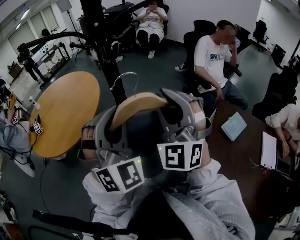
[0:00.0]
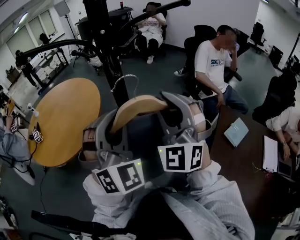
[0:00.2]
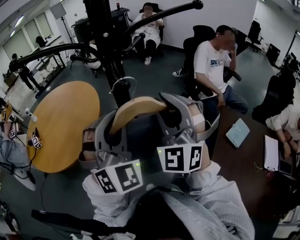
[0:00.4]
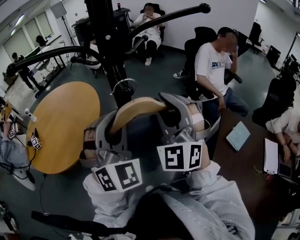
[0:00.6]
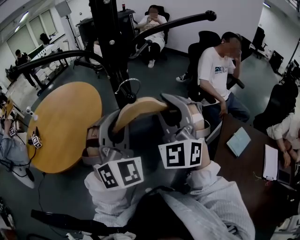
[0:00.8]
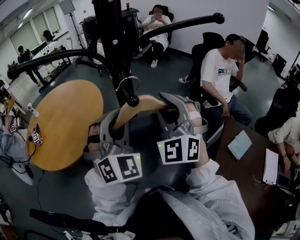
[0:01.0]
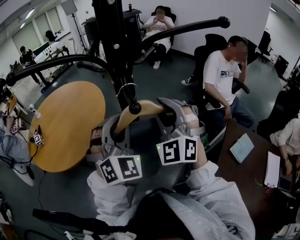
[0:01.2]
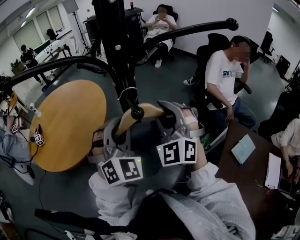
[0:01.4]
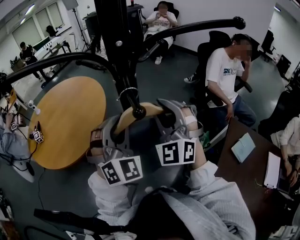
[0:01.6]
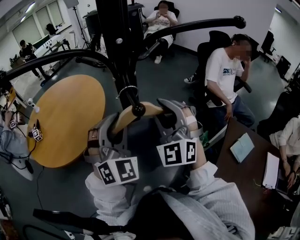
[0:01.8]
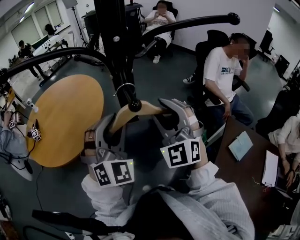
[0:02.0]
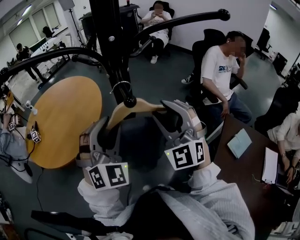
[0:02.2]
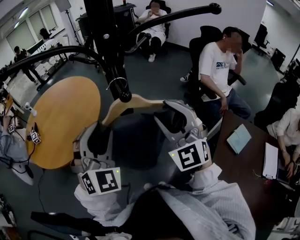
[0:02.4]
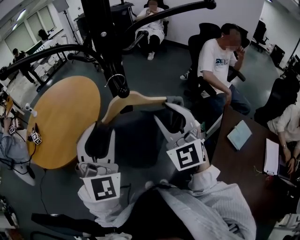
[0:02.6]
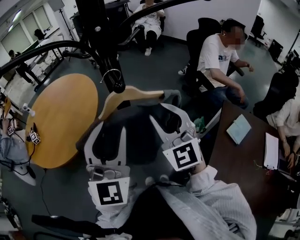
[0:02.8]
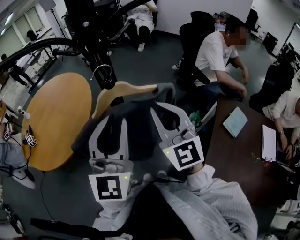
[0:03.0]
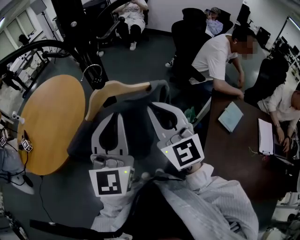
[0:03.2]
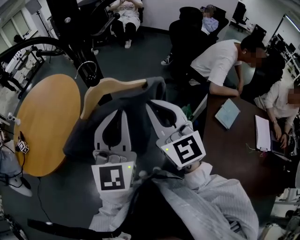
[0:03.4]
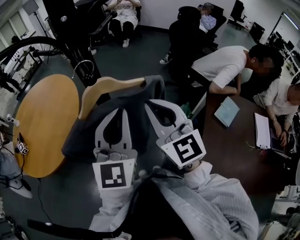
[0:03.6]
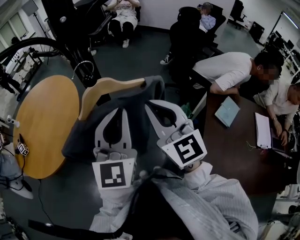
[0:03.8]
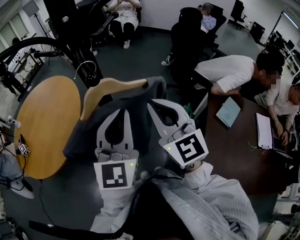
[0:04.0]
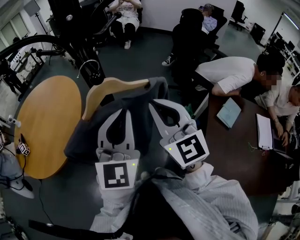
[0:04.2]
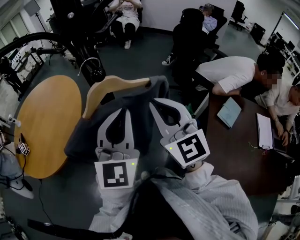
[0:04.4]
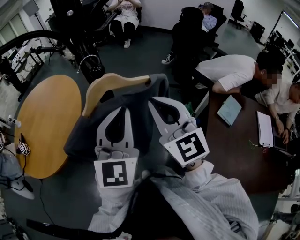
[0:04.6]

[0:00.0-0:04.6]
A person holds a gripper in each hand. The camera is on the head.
0:00.0 to 0:01.6: The two grippers go roughly 15 cm forward.
0:01.6 to 0:03.0: The two grippers go about 10 cm backward. The left gripper rolls counterclockwise, seen from behind, by about 40 degrees. Meanwhile the right gripper turns by about 40 degrees.
0:03.0 to 0:04.6: The left gripper ends up some 5 cm from where it was, and closes.

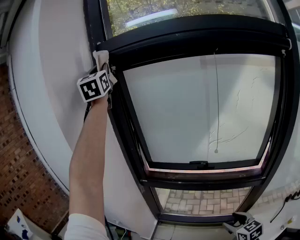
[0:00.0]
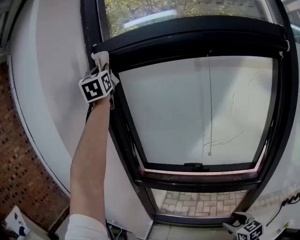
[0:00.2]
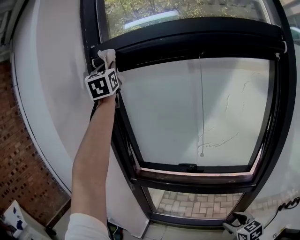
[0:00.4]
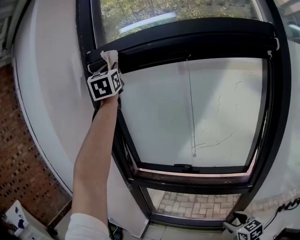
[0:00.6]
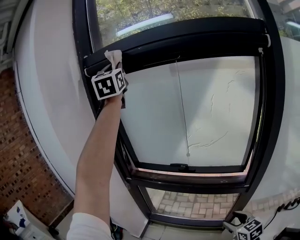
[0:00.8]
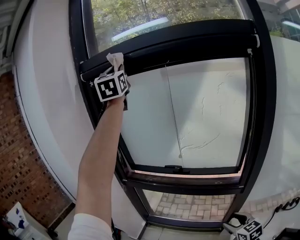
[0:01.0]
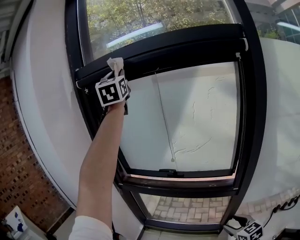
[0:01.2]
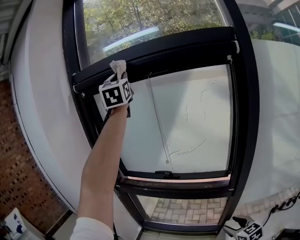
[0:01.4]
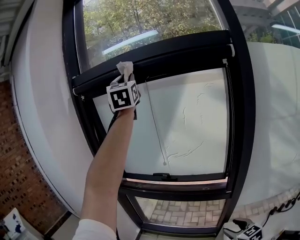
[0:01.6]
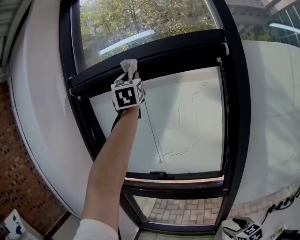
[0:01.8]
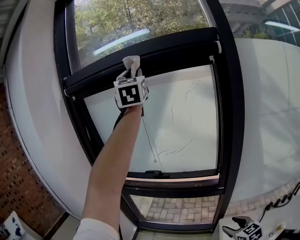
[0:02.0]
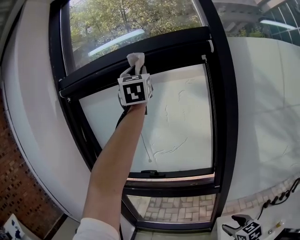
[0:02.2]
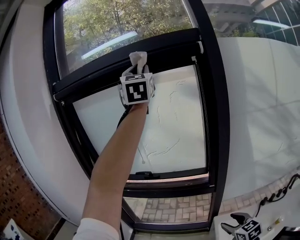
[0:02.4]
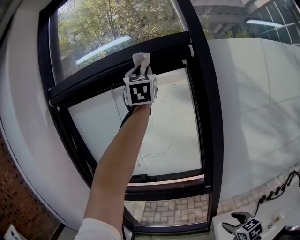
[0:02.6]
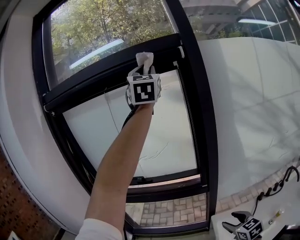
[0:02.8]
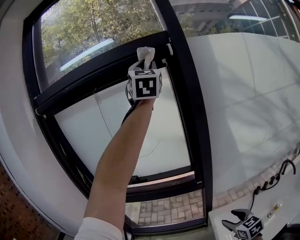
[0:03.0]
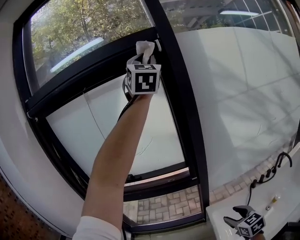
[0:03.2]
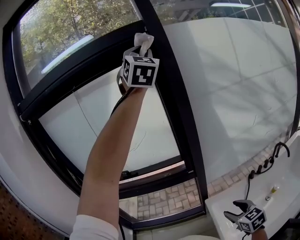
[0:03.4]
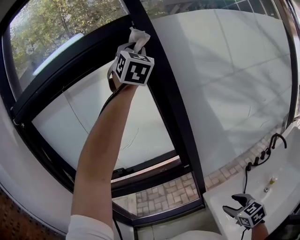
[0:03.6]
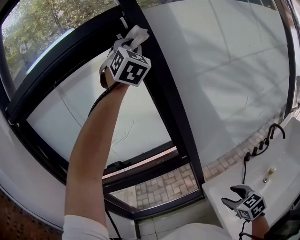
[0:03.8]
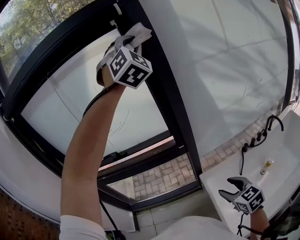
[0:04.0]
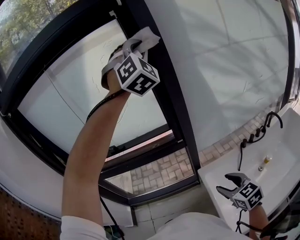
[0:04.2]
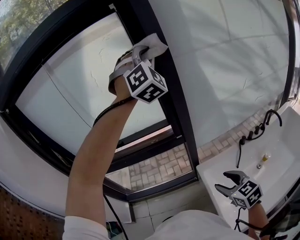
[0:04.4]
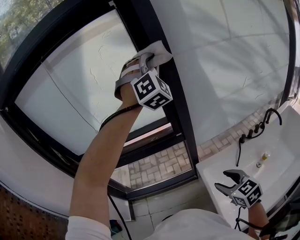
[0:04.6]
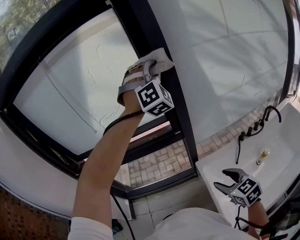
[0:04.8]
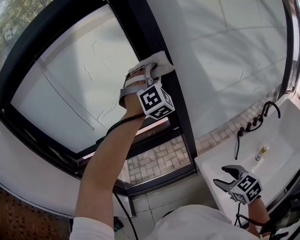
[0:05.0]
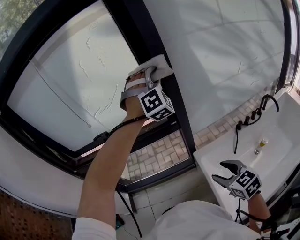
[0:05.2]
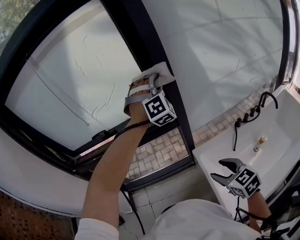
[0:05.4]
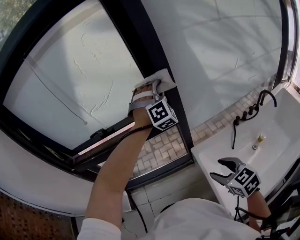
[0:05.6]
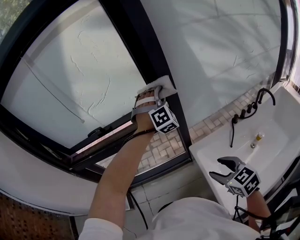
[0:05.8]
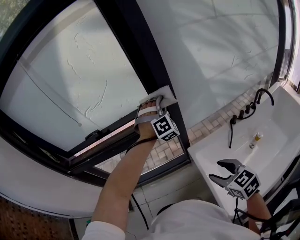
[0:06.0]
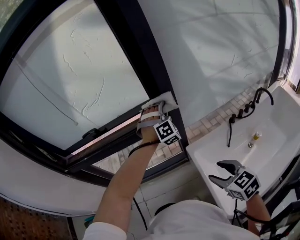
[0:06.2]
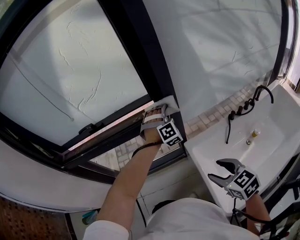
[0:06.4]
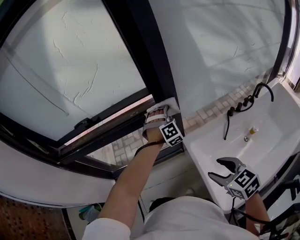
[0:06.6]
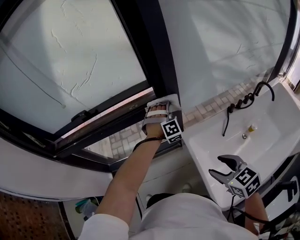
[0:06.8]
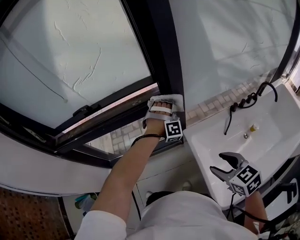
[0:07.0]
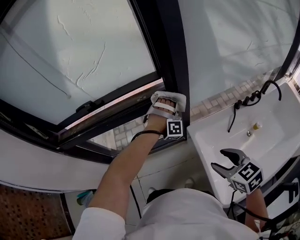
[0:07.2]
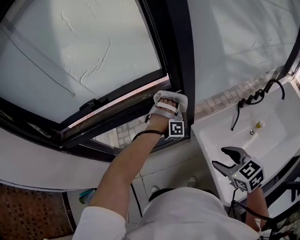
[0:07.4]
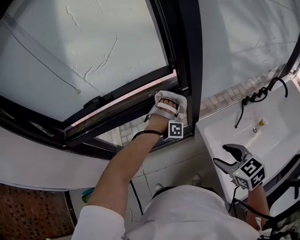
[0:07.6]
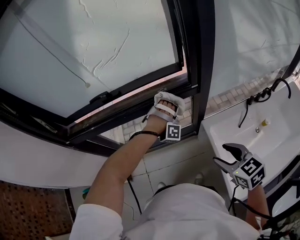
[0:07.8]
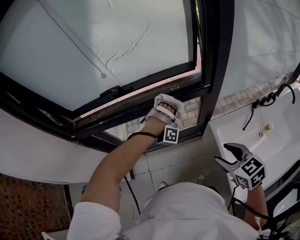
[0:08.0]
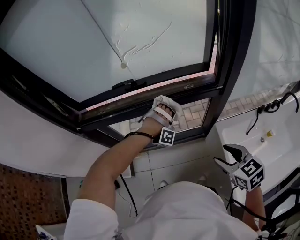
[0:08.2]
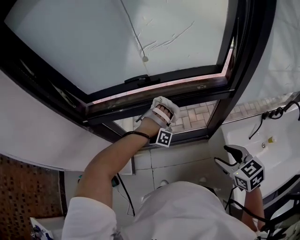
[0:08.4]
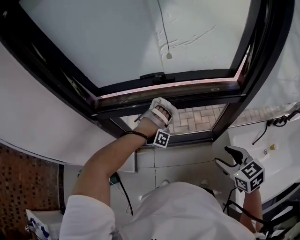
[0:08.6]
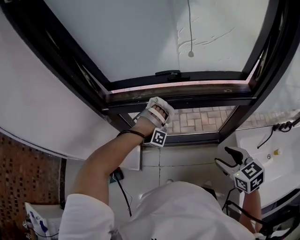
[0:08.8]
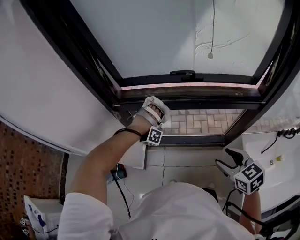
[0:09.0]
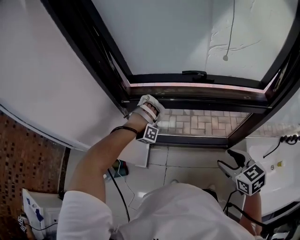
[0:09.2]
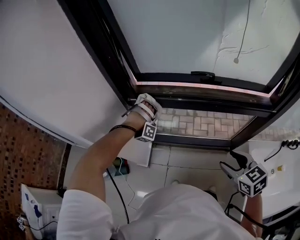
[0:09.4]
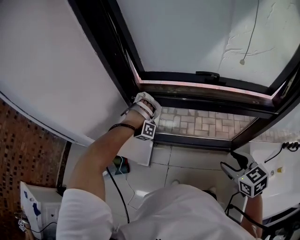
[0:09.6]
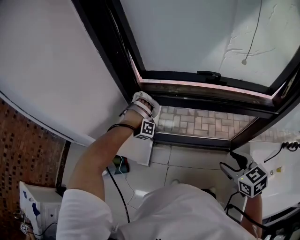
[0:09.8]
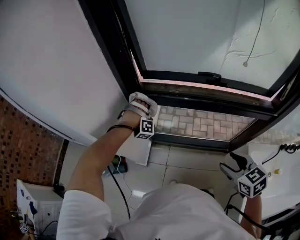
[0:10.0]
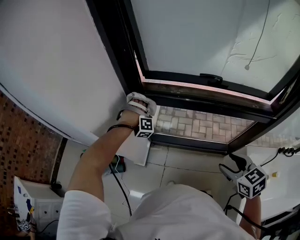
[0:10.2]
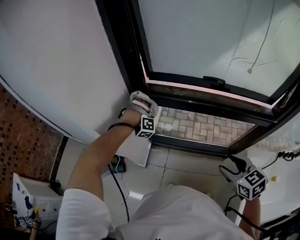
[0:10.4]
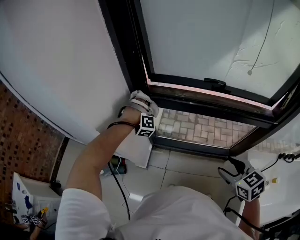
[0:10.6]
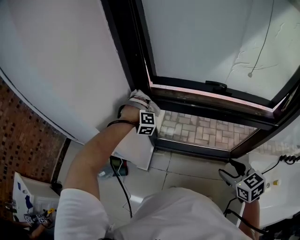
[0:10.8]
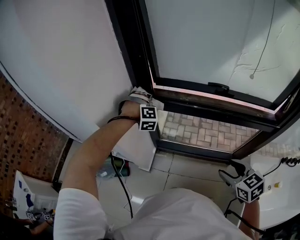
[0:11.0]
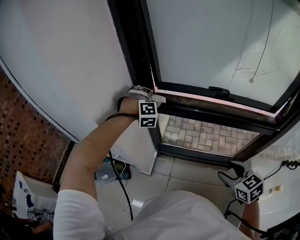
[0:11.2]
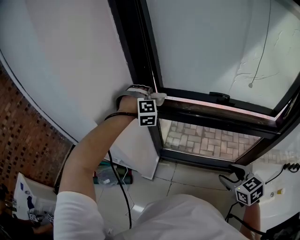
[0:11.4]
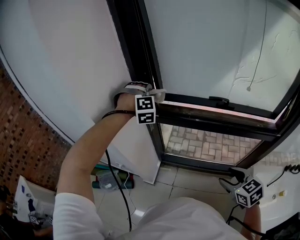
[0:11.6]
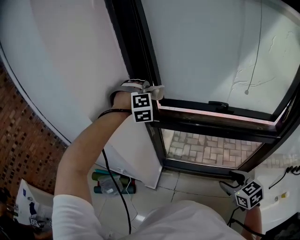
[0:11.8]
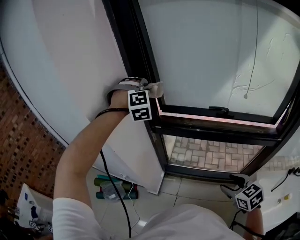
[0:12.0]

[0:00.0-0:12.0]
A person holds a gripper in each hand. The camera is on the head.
0:00.0 to 0:01.6: The right gripper ends up about 25 cm from where it was.
0:01.6 to 0:03.0: The right gripper ends up roughly 10 cm from where it was.
0:06.0 to 0:07.6: The right gripper changes place by roughly 5 cm.
0:07.6 to 0:09.0: The right gripper shifts by approximately 30 cm.
0:09.0 to 0:10.4: The right gripper shifts by approximately 10 cm.

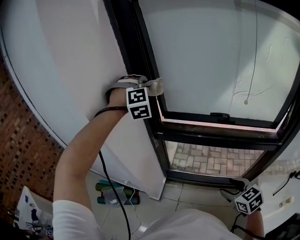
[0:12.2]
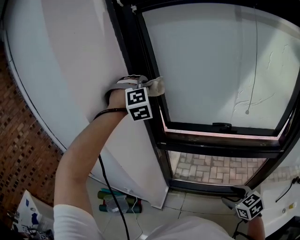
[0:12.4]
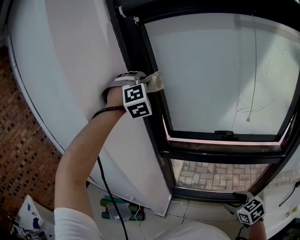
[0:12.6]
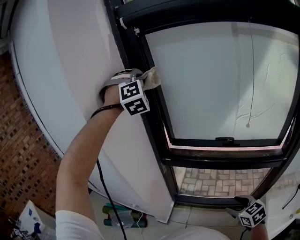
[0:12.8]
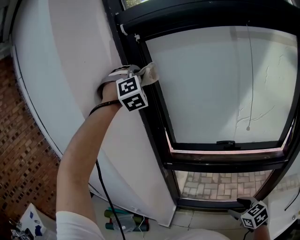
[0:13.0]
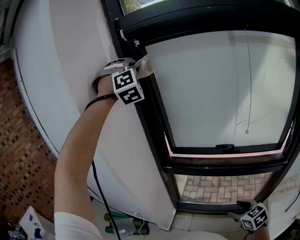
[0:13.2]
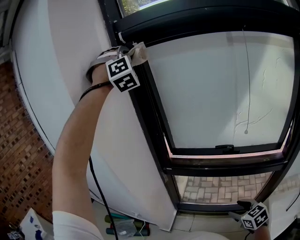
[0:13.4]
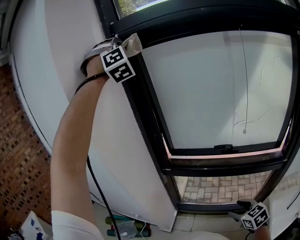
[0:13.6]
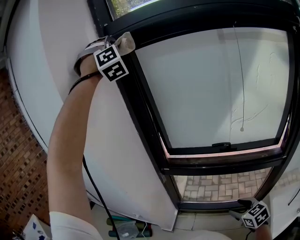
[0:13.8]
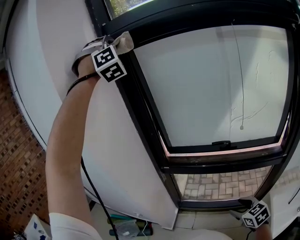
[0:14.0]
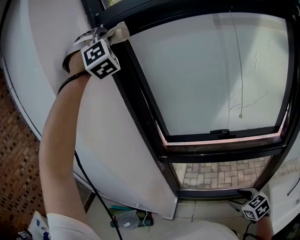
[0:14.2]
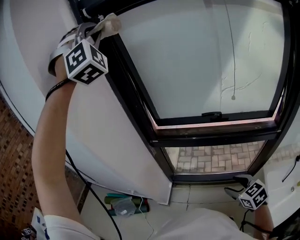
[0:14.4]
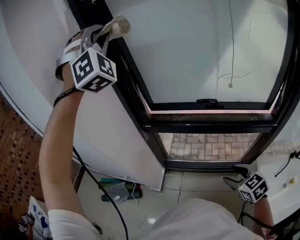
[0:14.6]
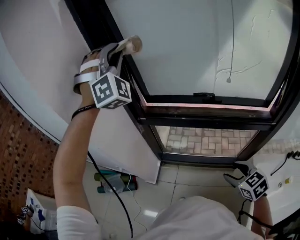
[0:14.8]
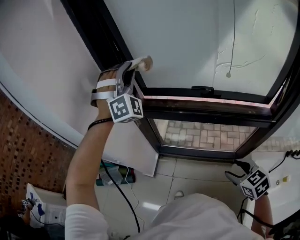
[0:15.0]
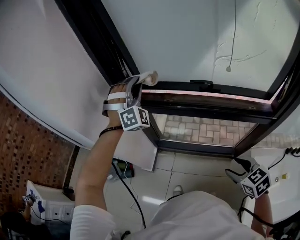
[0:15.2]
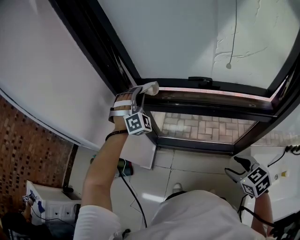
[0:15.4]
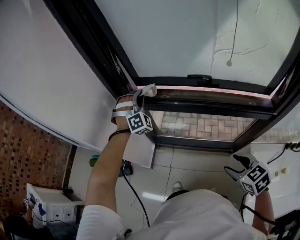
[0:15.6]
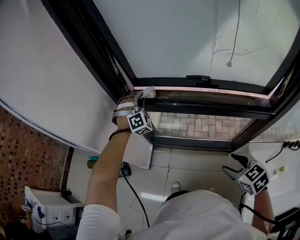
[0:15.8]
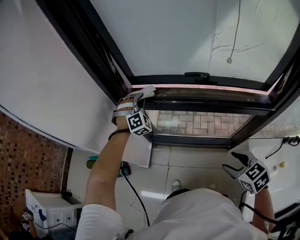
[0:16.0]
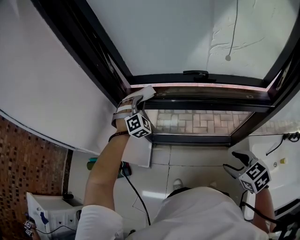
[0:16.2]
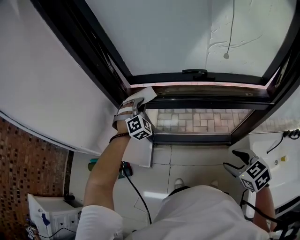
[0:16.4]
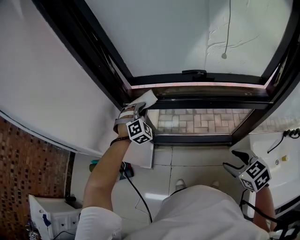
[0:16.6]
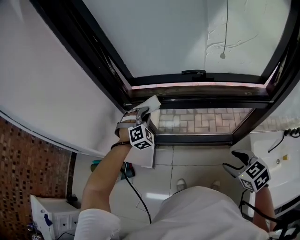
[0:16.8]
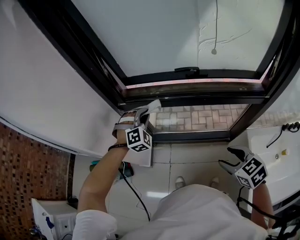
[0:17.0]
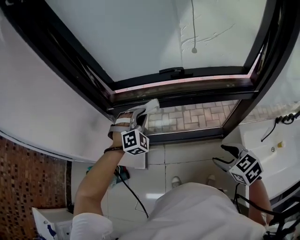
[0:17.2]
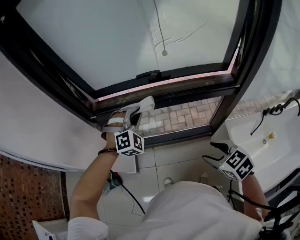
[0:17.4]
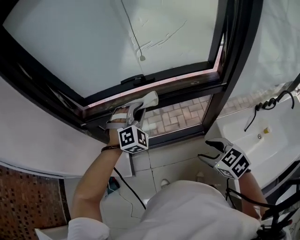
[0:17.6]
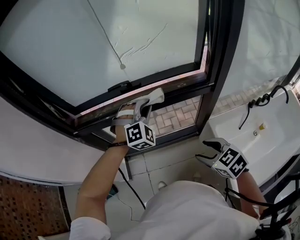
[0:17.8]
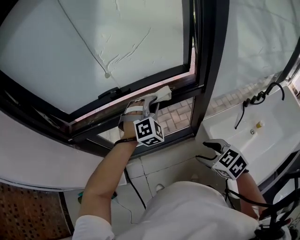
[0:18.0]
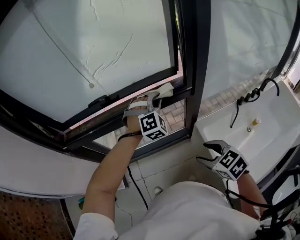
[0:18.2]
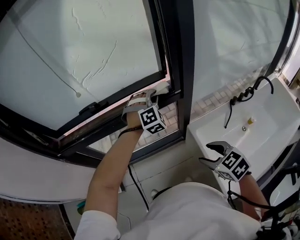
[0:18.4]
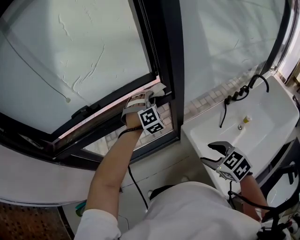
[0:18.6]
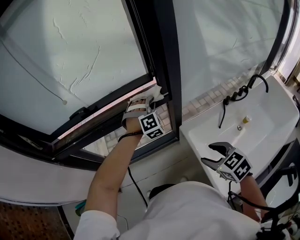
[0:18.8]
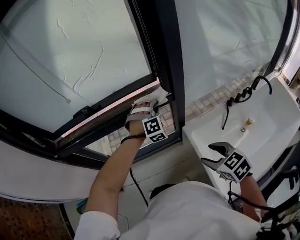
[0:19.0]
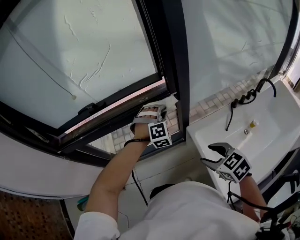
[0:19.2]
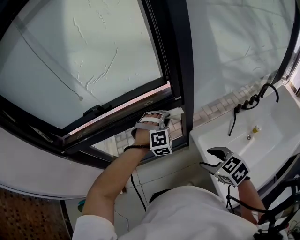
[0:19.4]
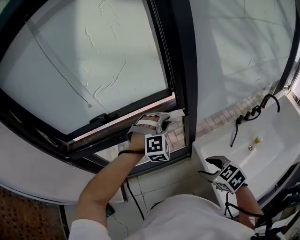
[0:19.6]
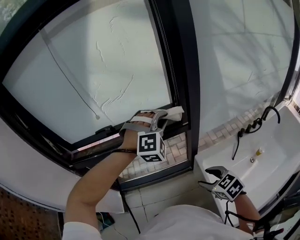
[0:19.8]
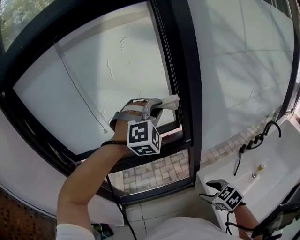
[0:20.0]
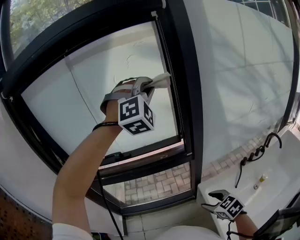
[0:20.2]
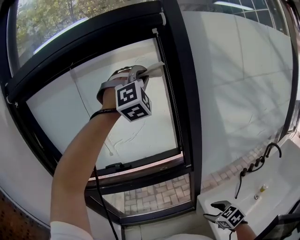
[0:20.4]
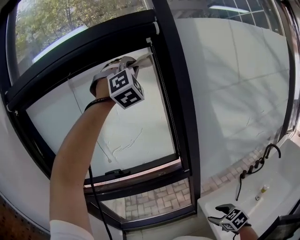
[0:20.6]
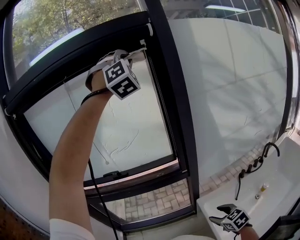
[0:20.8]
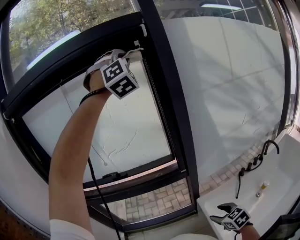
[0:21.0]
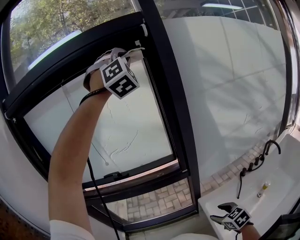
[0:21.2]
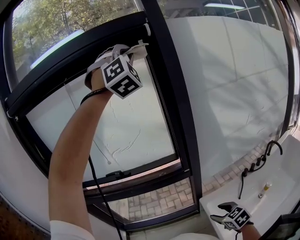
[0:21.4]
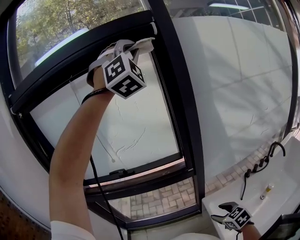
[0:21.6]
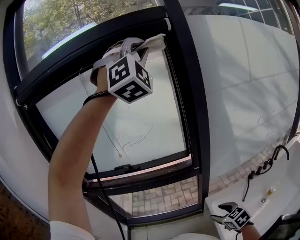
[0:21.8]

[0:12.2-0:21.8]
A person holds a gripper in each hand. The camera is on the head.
0:13.8 to 0:15.4: The right gripper shifts by about 10 cm.
0:17.0 to 0:18.6: The right gripper ends up some 30 cm from where it was, and turns by roughly 20 degrees.
